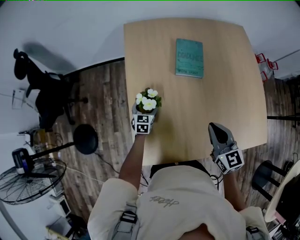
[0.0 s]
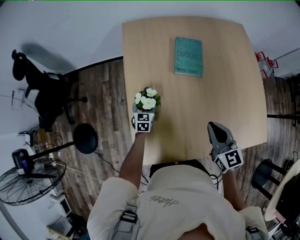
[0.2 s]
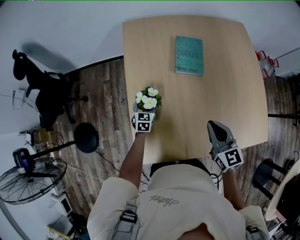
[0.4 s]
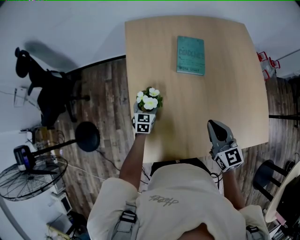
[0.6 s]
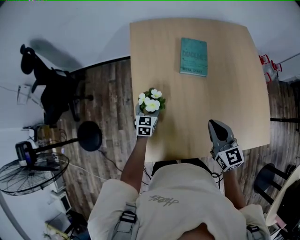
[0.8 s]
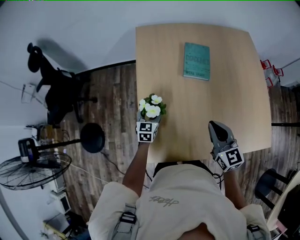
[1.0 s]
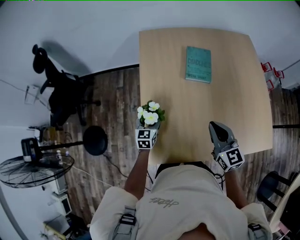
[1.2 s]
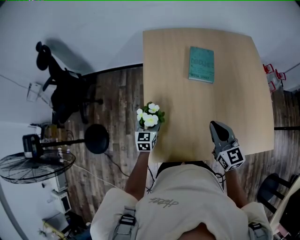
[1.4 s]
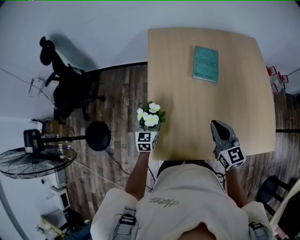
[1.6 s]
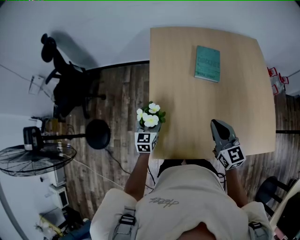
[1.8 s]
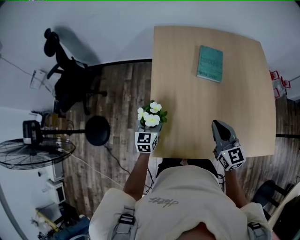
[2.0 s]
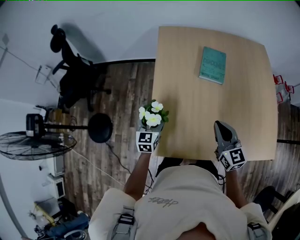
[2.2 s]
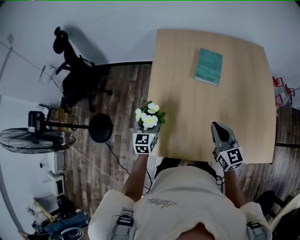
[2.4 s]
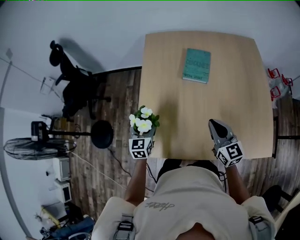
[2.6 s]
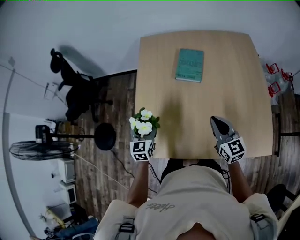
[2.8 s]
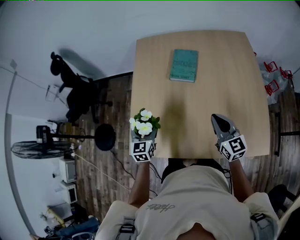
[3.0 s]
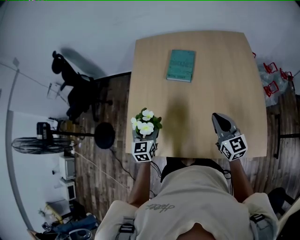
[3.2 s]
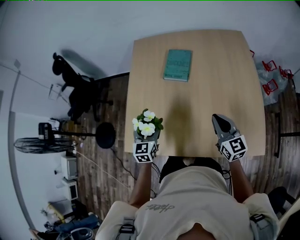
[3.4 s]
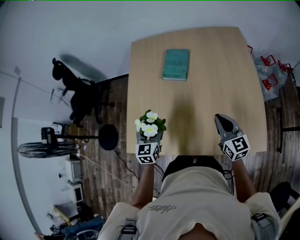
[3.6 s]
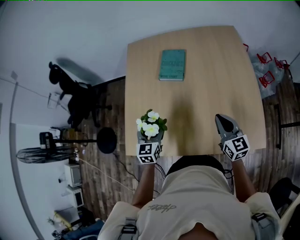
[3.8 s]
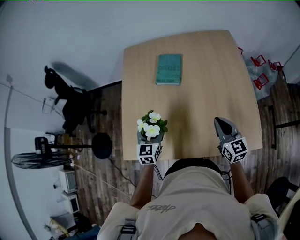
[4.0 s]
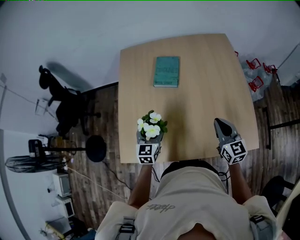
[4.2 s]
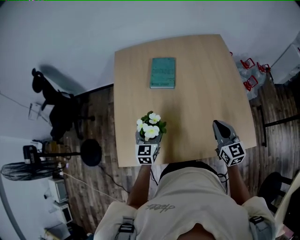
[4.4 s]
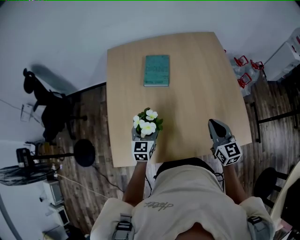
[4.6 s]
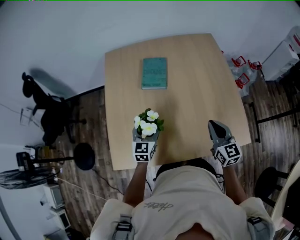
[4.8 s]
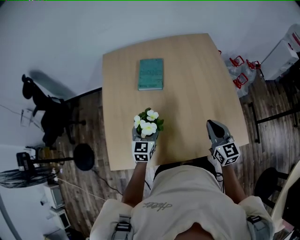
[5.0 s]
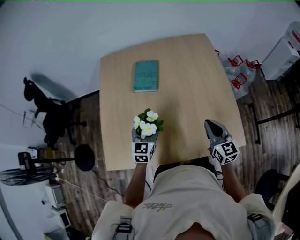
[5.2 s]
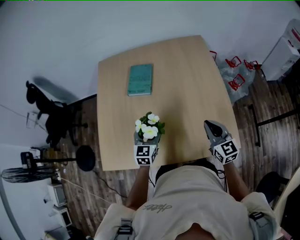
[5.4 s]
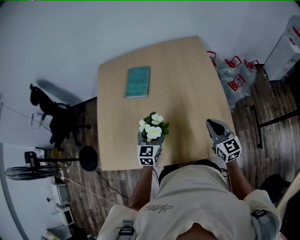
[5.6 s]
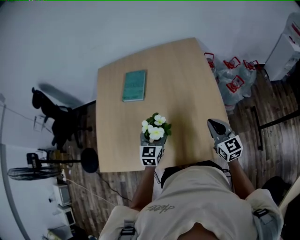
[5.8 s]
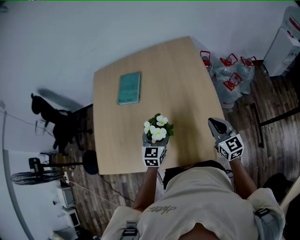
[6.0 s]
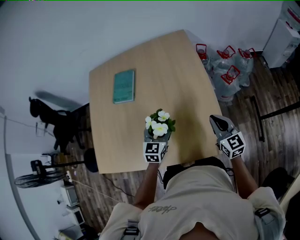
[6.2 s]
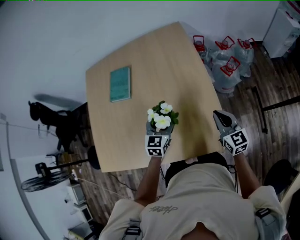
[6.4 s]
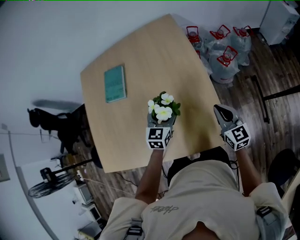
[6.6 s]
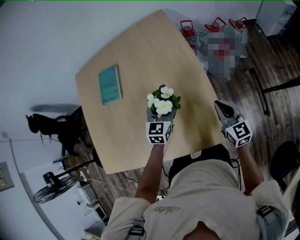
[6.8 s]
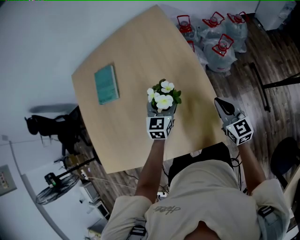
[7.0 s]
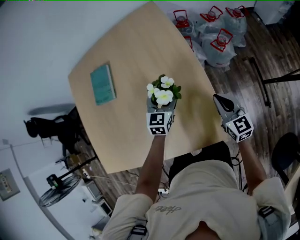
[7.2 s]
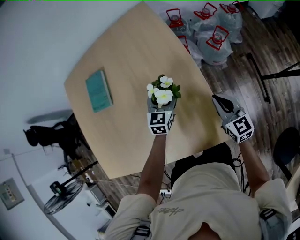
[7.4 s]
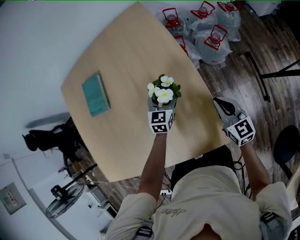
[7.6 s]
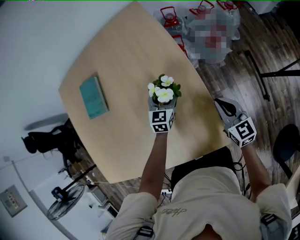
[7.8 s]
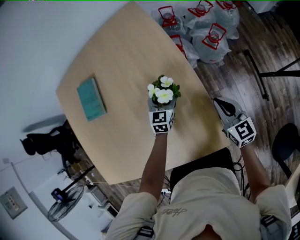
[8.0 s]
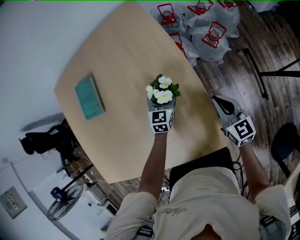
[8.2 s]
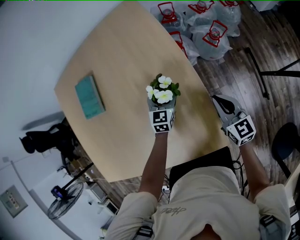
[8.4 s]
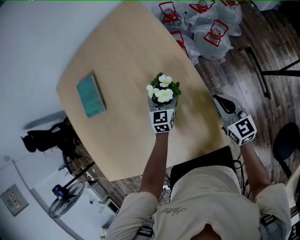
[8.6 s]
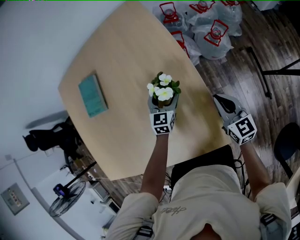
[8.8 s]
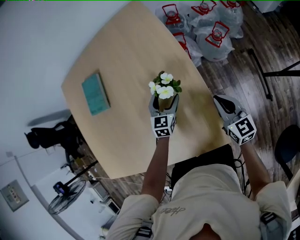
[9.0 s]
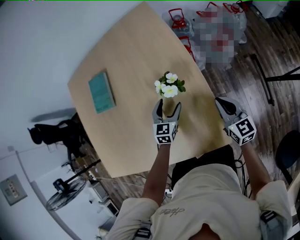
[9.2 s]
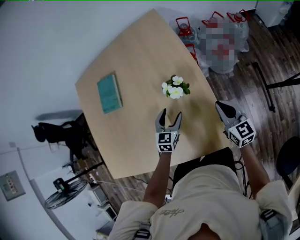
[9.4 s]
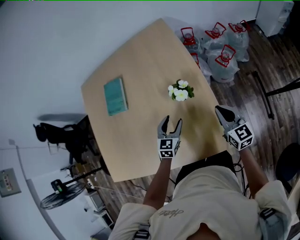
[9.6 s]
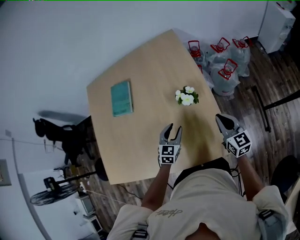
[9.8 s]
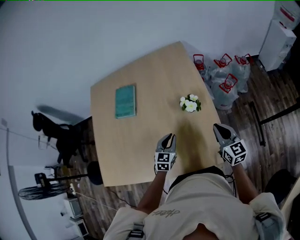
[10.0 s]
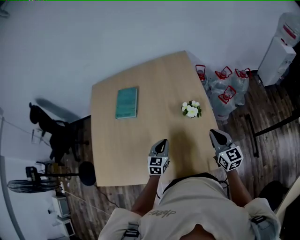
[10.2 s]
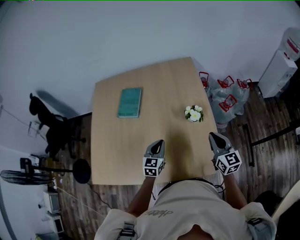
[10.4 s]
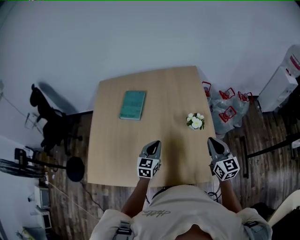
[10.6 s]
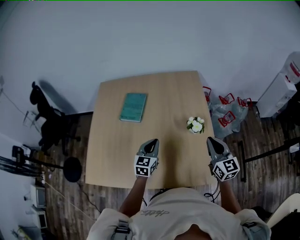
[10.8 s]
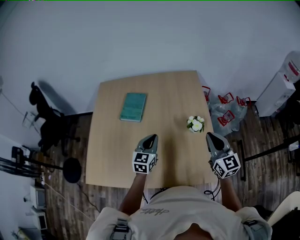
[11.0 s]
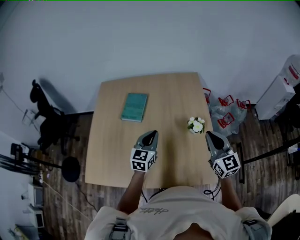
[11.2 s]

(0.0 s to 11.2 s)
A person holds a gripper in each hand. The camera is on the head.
0.0 s - 1.6 s: The left gripper moves upward, backward and to the left, about 15 cm; the right gripper moves roughly 5 cm.
1.6 s - 3.2 s: The right gripper is displaced to the right by approximately 20 cm. The left gripper moves to the right, backward and upward, about 20 cm.
3.2 s - 4.8 s: The left gripper heads to the right, covering roughly 10 cm. Meanwhile the right gripper ends up some 5 cm from where it was.
4.8 s - 6.4 s: The grippers both shift to the right by approximately 30 cm.
6.4 s - 8.0 s: The right gripper moves downward, to the right and forward, roughly 15 cm. Meanwhile the left gripper is displaced forward, downward and to the right by approximately 25 cm.
8.0 s - 9.6 s: The right gripper is displaced upward by about 5 cm; the left gripper shifts approximately 15 cm backward, to the left and upward.
9.6 s - 11.2 s: The grippers both shift upward and to the left by roughly 25 cm. The left gripper rotates roughly 20 degrees, and closes its fingers, while the right gripper swivels about 30 degrees.

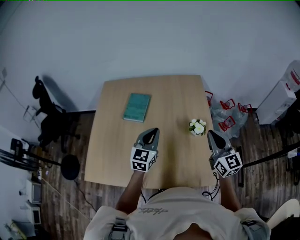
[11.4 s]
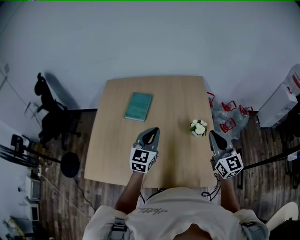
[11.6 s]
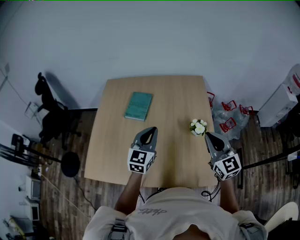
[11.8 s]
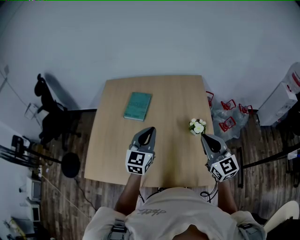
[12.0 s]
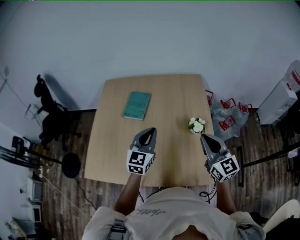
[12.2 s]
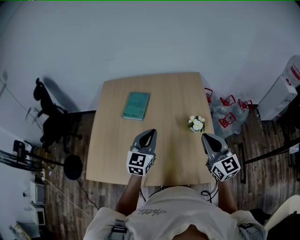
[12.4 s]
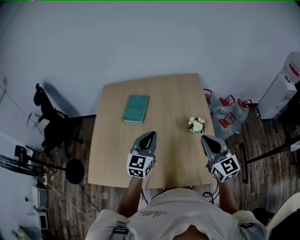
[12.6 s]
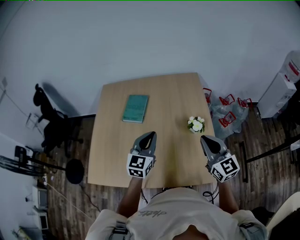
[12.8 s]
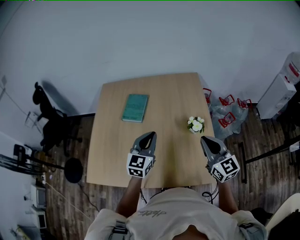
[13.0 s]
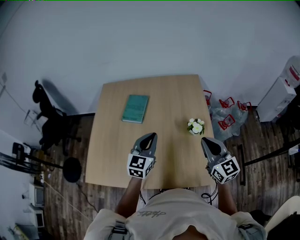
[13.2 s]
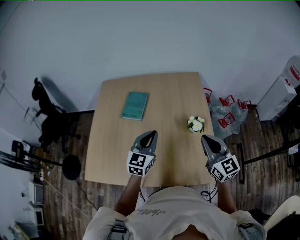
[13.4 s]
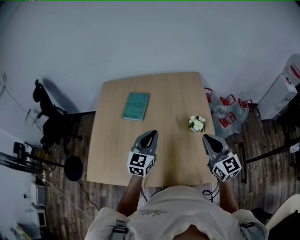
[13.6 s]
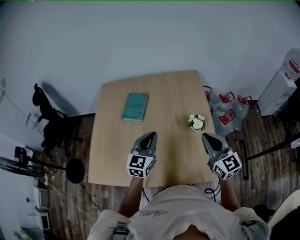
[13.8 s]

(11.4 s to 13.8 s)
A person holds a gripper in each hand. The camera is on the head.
11.4 s - 12.6 s: The grippers move only a little.
12.6 s - 13.8 s: Both grippers stay about where they are.

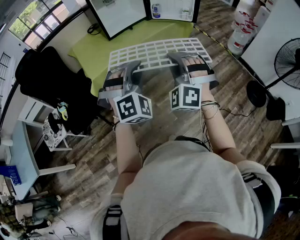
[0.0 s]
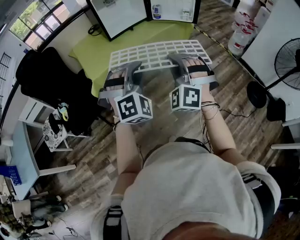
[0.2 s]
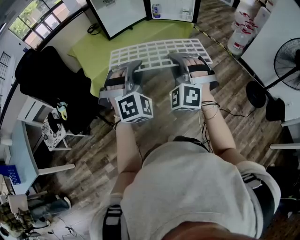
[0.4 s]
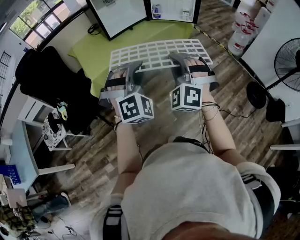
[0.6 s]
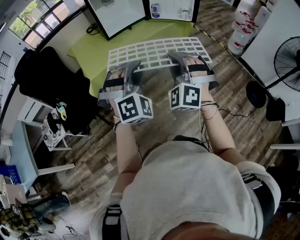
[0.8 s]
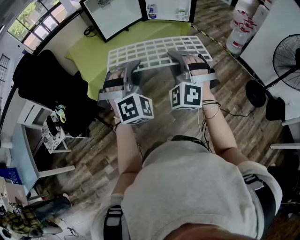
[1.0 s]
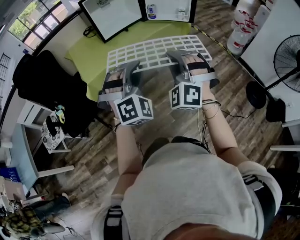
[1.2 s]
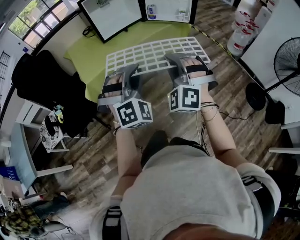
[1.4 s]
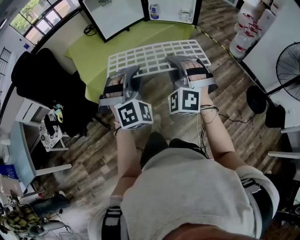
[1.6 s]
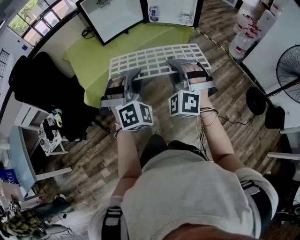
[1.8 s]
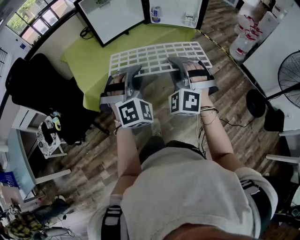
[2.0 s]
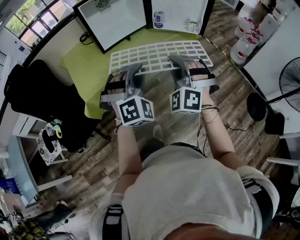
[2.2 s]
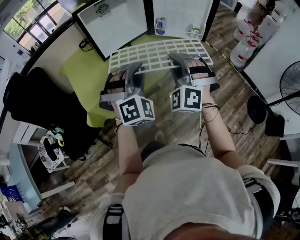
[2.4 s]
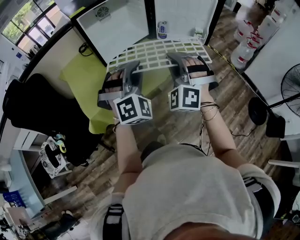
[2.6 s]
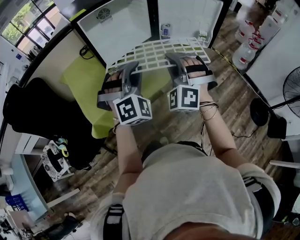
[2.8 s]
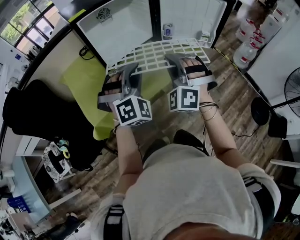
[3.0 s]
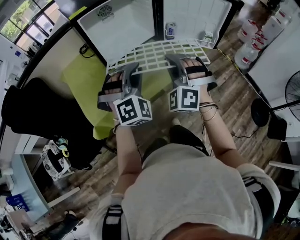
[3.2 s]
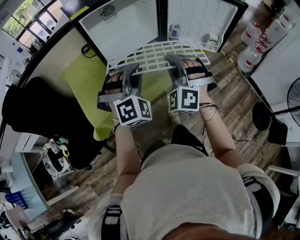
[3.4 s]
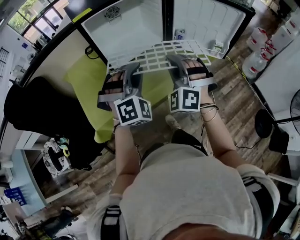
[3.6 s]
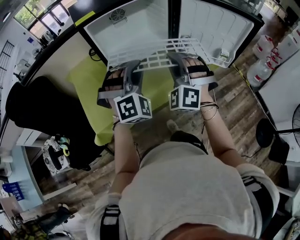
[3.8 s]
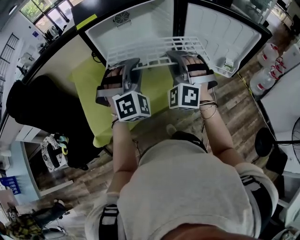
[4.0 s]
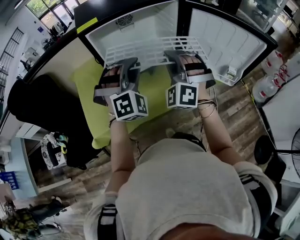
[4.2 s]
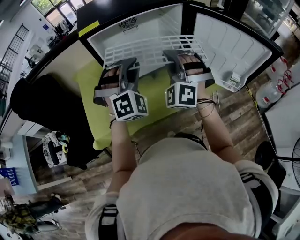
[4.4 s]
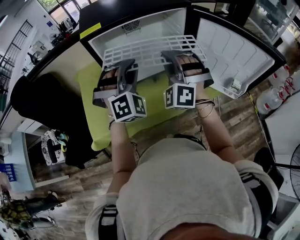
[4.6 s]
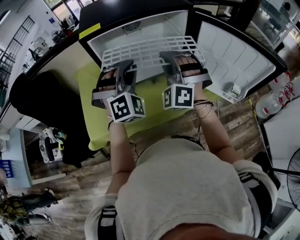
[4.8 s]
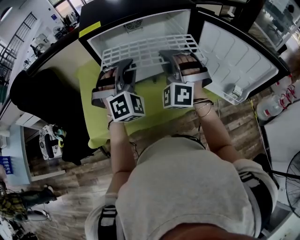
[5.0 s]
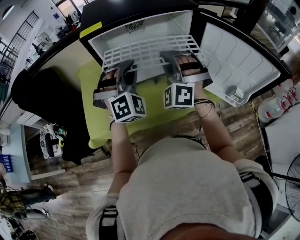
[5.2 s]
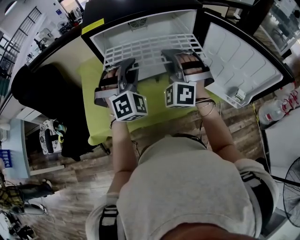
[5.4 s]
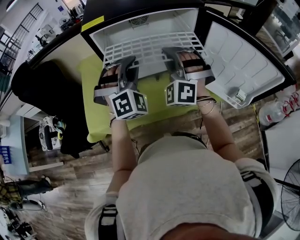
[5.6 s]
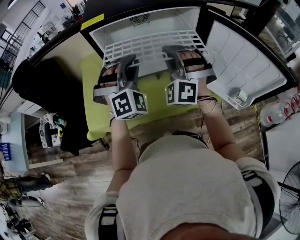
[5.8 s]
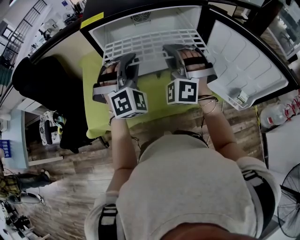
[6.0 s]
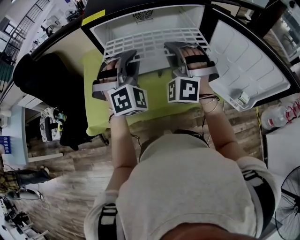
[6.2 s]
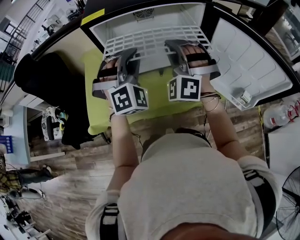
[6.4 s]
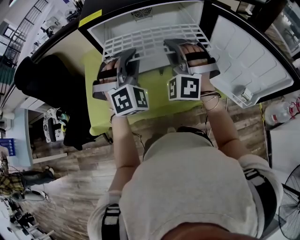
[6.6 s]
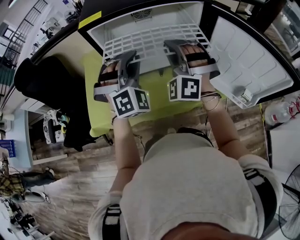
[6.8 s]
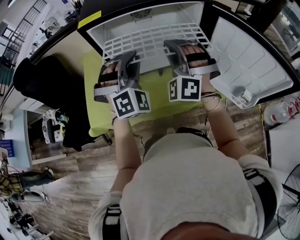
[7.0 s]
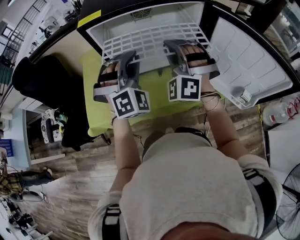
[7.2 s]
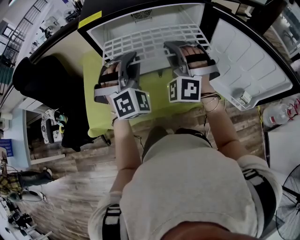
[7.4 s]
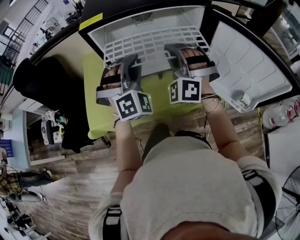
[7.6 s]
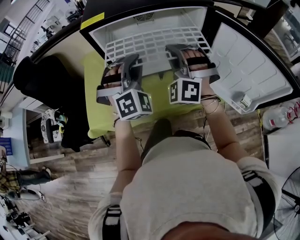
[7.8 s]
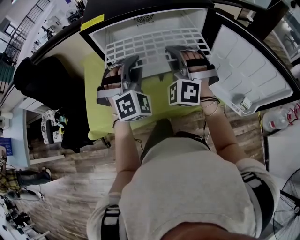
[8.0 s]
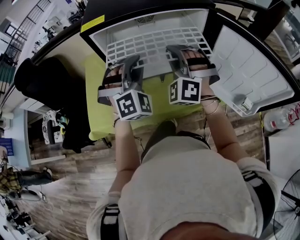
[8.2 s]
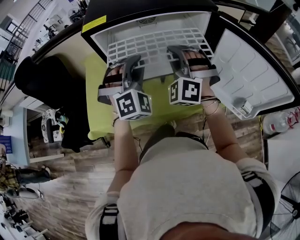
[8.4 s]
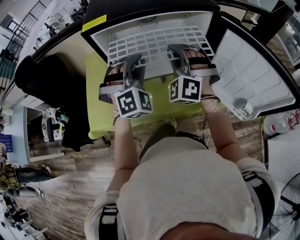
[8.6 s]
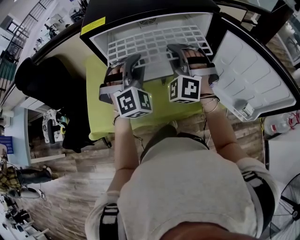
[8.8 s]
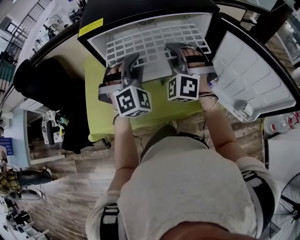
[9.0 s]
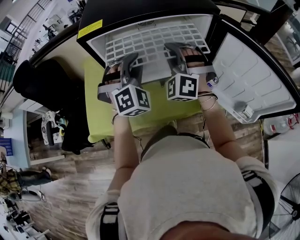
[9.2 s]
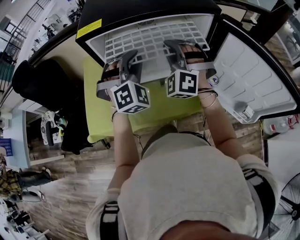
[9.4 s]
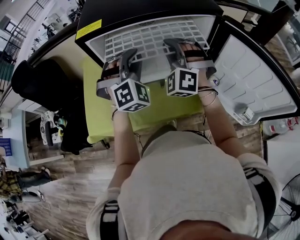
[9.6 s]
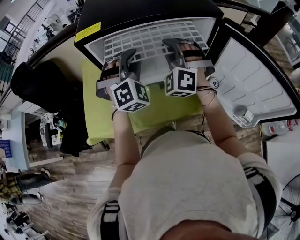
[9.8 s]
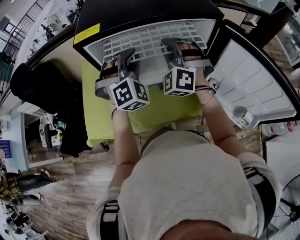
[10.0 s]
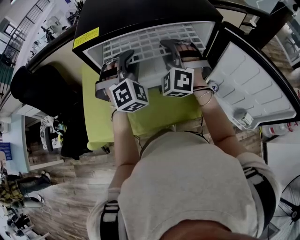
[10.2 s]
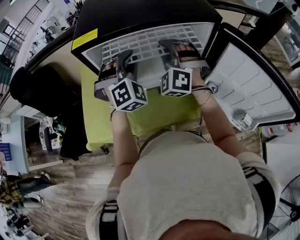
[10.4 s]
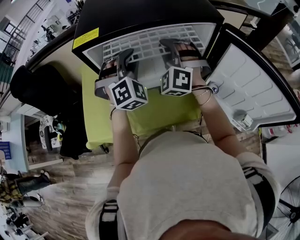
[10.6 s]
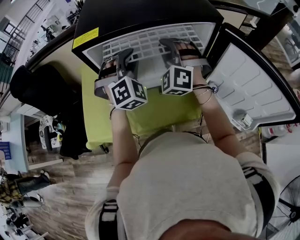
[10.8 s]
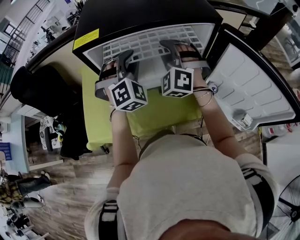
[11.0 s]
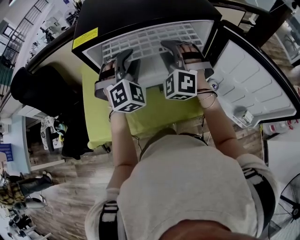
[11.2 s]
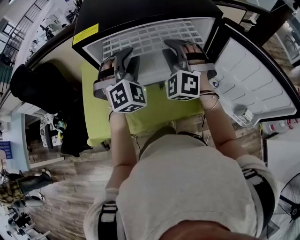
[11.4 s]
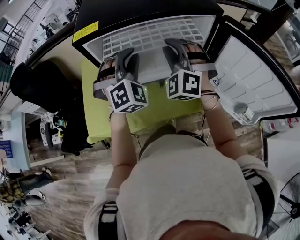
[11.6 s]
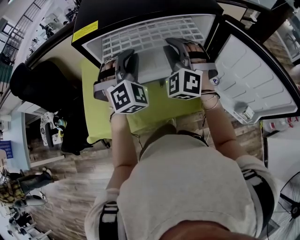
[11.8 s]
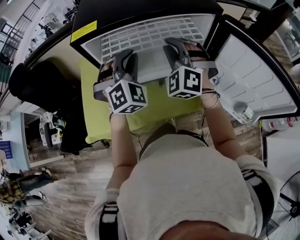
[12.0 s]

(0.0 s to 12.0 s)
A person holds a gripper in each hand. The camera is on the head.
0.0 s - 1.6 s: The right gripper shifts approximately 5 cm forward. Meanwhile the left gripper shifts by about 5 cm.
1.6 s - 3.0 s: Both grippers travel together forward, approximately 30 cm.
3.0 s - 4.4 s: Both grippers travel together forward, some 20 cm.
4.4 s - 6.0 s: The right gripper shifts some 5 cm forward.
6.0 s - 7.6 s: There are only small adjustments of the grippers.
7.6 s - 9.0 s: The right gripper travels forward by roughly 5 cm; the left gripper moves roughly 5 cm.
9.0 s - 10.4 s: The two grippers go about 5 cm forward.
10.4 s - 12.0 s: The grippers move only a little.
